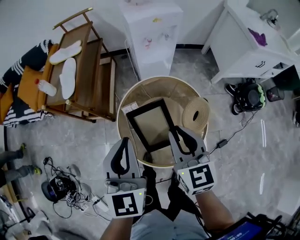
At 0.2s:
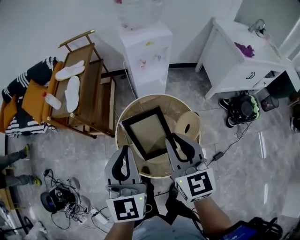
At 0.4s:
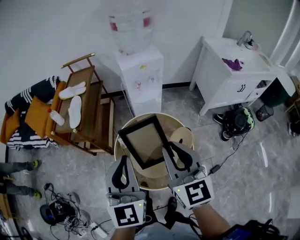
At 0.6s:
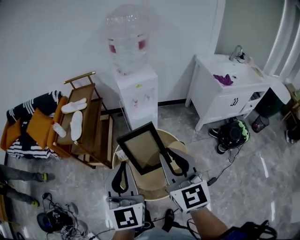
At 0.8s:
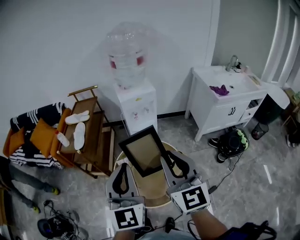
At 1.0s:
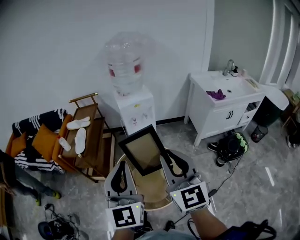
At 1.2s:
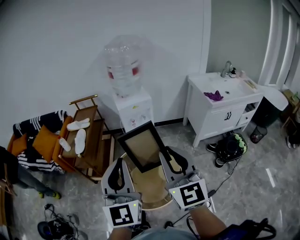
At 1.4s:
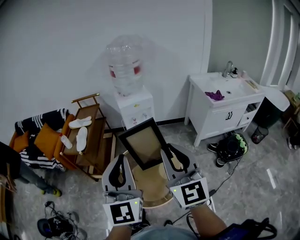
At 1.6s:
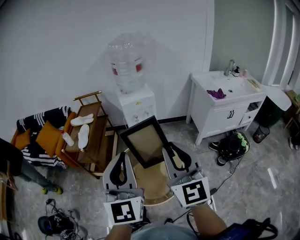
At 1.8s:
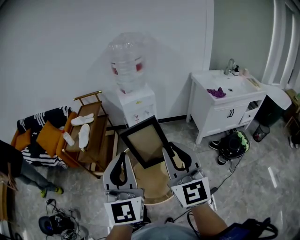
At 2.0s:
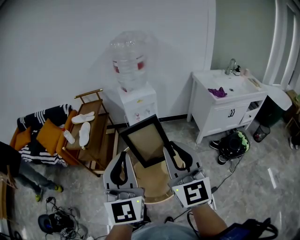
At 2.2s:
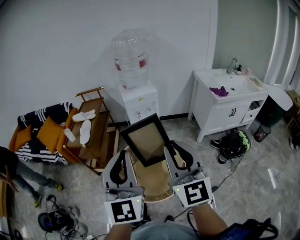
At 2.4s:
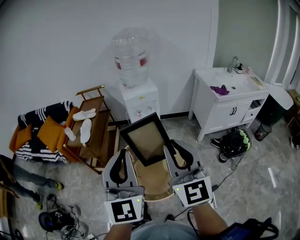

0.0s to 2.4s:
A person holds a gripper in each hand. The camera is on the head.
0.0s to 1.2s: The left gripper shifts some 30 cm upward and backward, and swivels about 30 degrees, while the right gripper shifts about 30 cm upward, and tilts its fingers roughly 30 degrees upward.
1.2s to 2.4s: The grippers stay close to where they were, moving slightly.

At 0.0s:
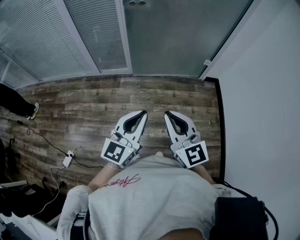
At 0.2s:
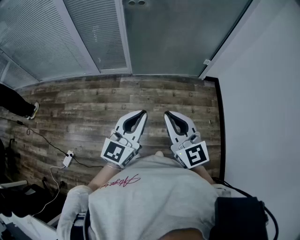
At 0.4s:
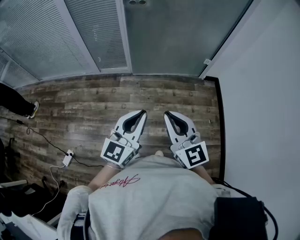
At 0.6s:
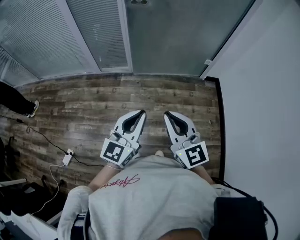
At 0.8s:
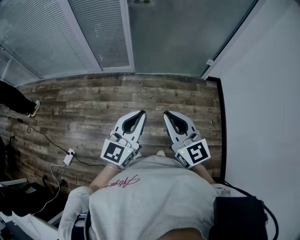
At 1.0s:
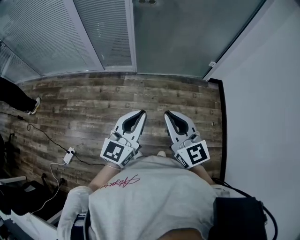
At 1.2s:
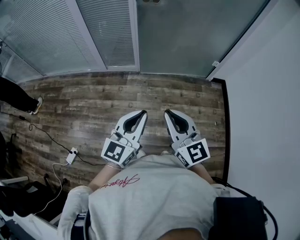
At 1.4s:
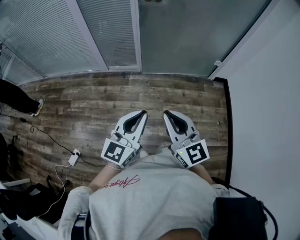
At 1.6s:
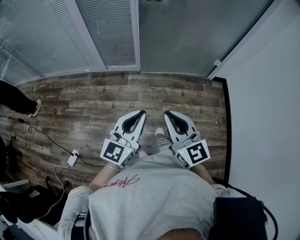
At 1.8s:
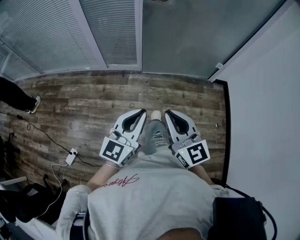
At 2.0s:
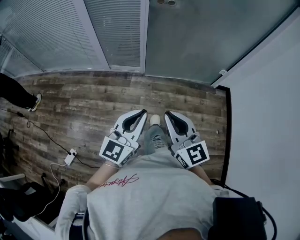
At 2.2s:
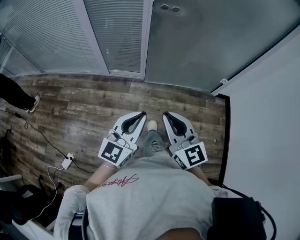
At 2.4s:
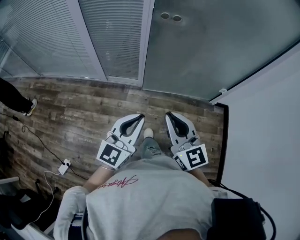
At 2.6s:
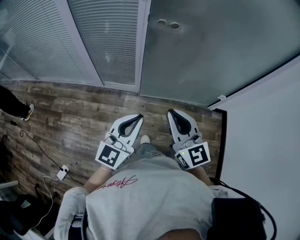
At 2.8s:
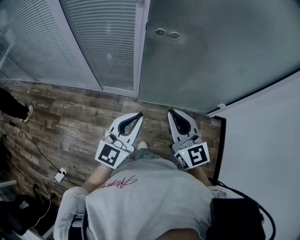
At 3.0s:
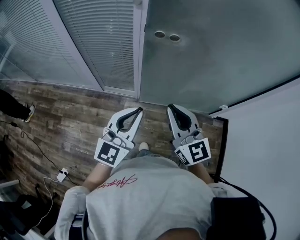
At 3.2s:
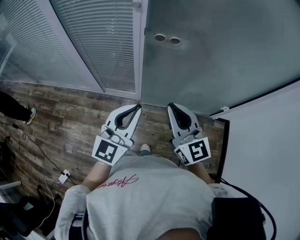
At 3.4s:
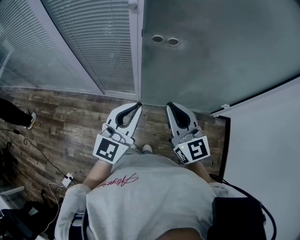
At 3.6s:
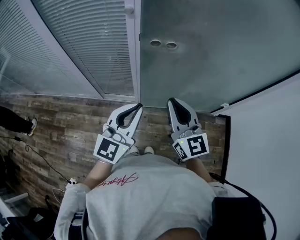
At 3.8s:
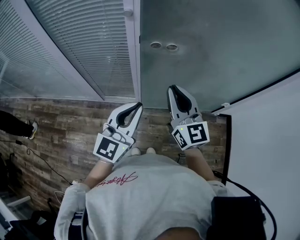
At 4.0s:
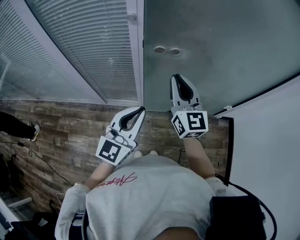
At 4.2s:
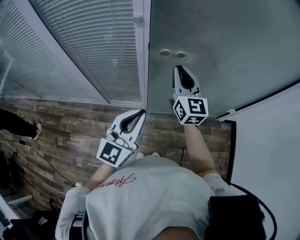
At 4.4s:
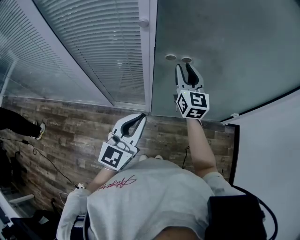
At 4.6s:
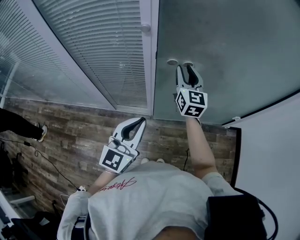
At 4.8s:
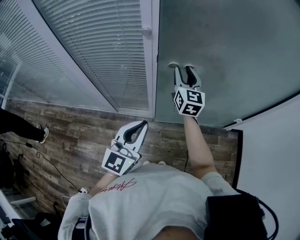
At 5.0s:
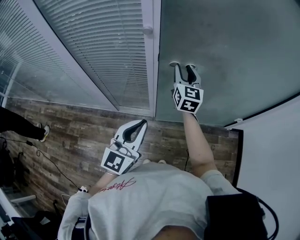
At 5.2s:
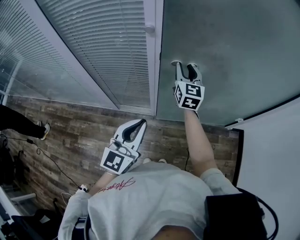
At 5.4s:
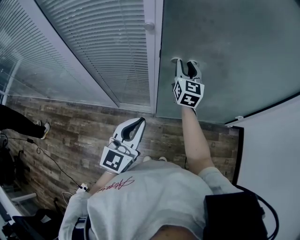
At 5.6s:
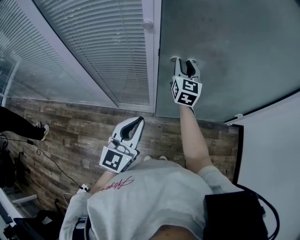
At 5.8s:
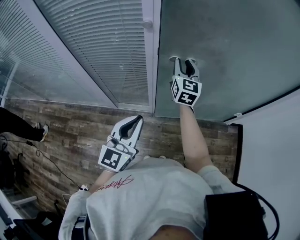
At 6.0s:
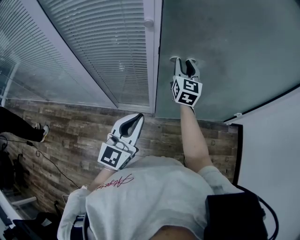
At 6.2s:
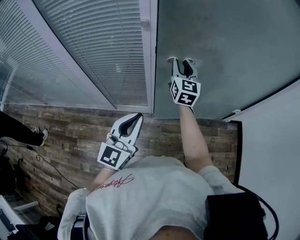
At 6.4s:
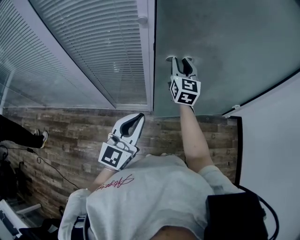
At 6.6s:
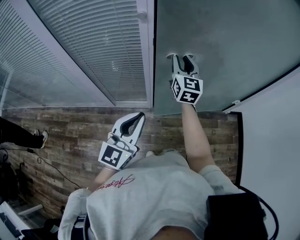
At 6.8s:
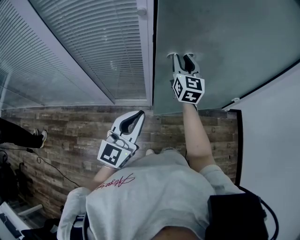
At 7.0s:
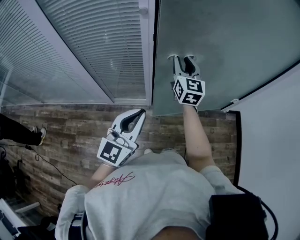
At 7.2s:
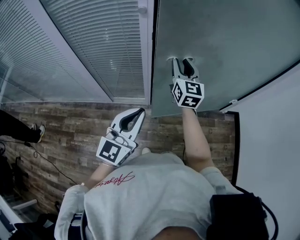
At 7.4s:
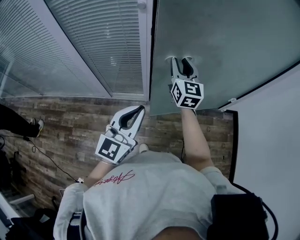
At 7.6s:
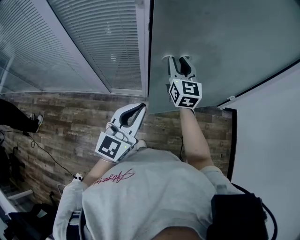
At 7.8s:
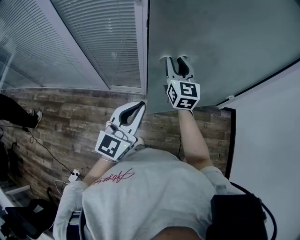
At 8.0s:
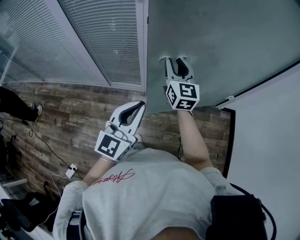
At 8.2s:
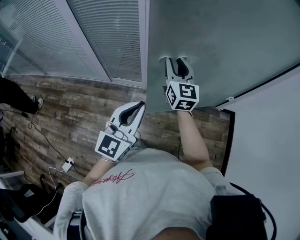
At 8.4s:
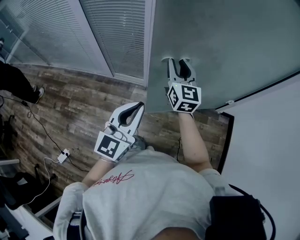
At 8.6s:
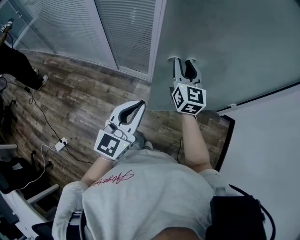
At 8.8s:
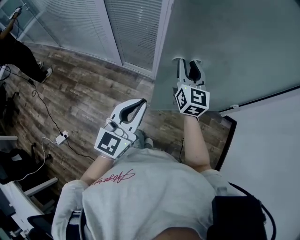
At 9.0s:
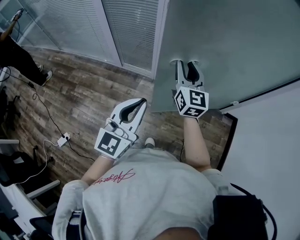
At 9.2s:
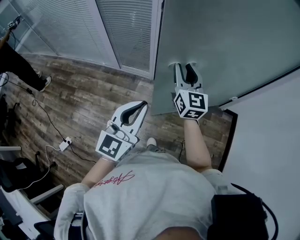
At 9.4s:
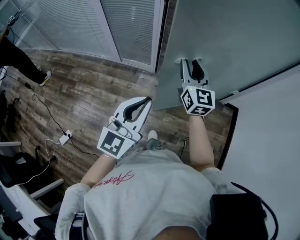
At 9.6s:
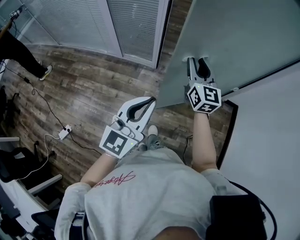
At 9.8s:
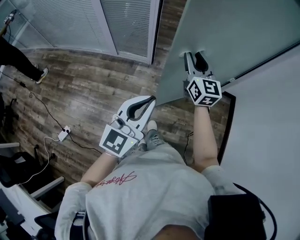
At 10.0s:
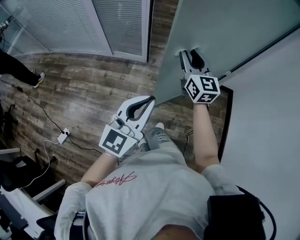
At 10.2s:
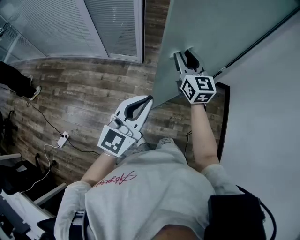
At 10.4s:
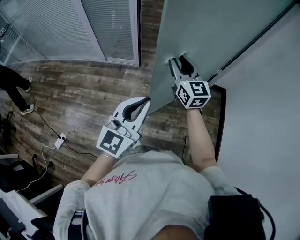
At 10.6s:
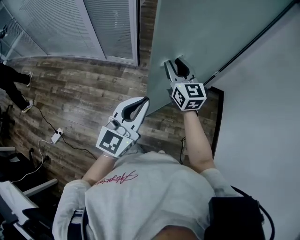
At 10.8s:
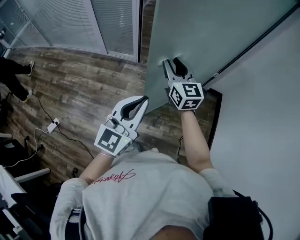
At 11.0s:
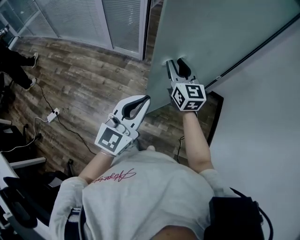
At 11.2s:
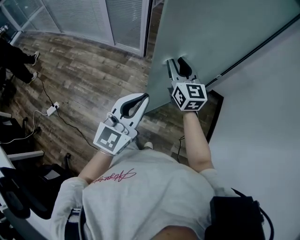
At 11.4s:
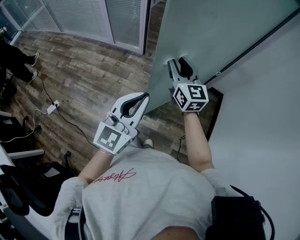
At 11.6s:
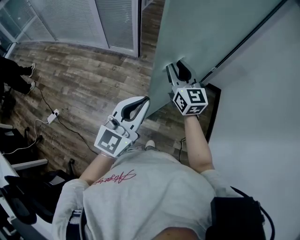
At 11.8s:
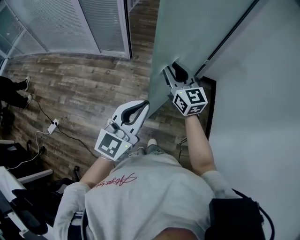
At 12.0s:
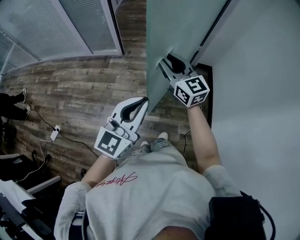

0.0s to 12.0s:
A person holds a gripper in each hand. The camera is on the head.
0.0s to 1.6s: The grippers both shift to the left by some 10 cm.
1.6s to 3.0s: The grippers both shift forward by approximately 35 cm.
3.0s to 4.4s: The left gripper is displaced forward and to the left by approximately 10 cm. Meanwhile the right gripper shifts about 25 cm forward, changes its angle by some 20 degrees, and opens up.
4.4s to 6.0s: The right gripper moves roughly 5 cm.
6.0s to 7.6s: The right gripper is displaced backward by roughly 15 cm. Meanwhile the left gripper heads to the right and backward, covering some 10 cm.
7.6s to 9.0s: The left gripper shifts about 15 cm backward and to the right, while the right gripper travels backward by approximately 15 cm.
9.0s to 10.4s: Both grippers travel together backward and to the right, approximately 20 cm.
10.4s to 12.0s: The left gripper heads to the right and backward, covering about 20 cm; the right gripper is displaced backward and to the right by roughly 20 cm.

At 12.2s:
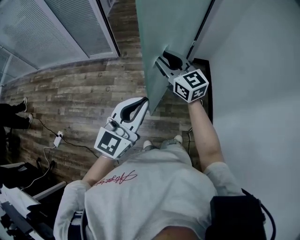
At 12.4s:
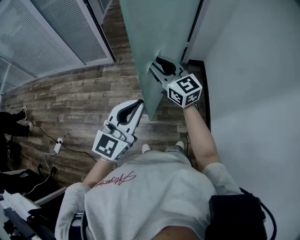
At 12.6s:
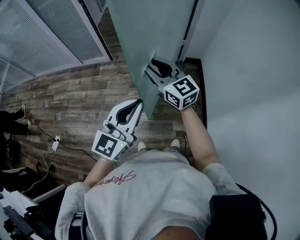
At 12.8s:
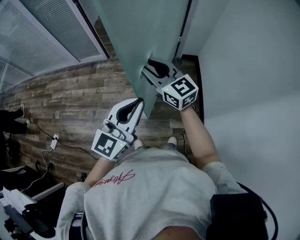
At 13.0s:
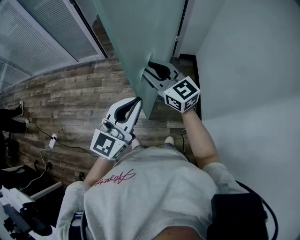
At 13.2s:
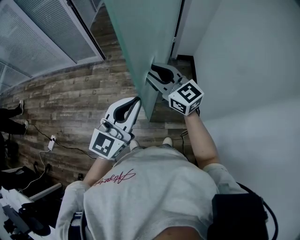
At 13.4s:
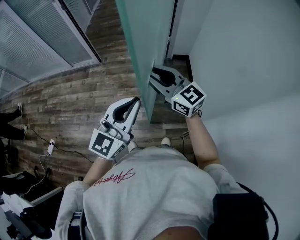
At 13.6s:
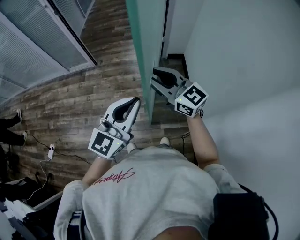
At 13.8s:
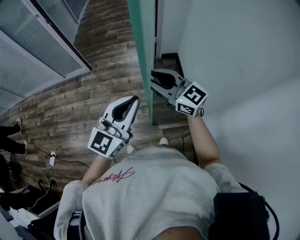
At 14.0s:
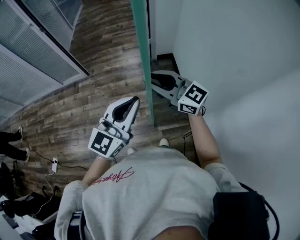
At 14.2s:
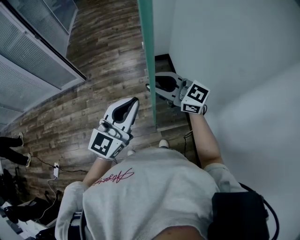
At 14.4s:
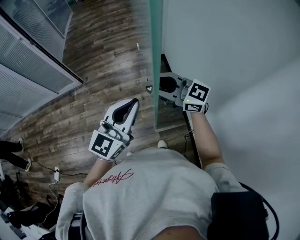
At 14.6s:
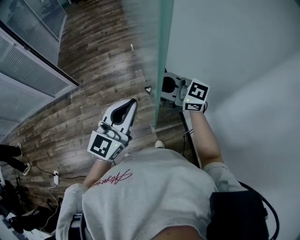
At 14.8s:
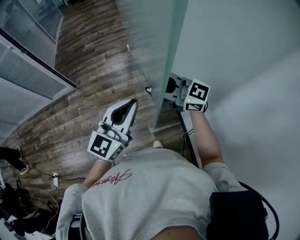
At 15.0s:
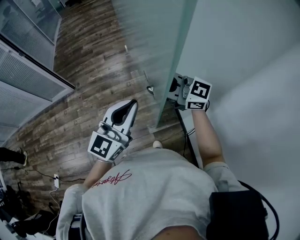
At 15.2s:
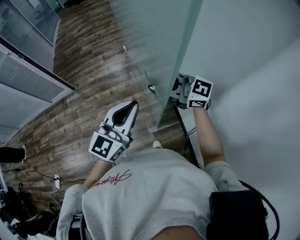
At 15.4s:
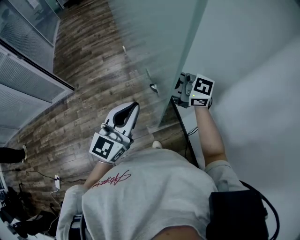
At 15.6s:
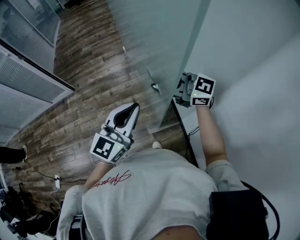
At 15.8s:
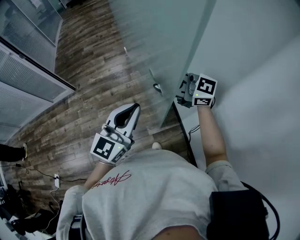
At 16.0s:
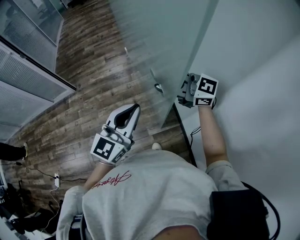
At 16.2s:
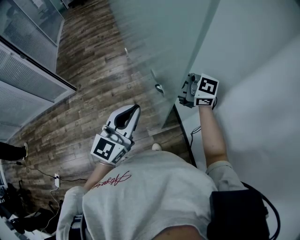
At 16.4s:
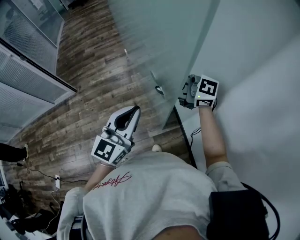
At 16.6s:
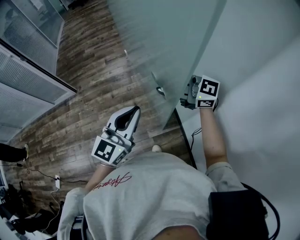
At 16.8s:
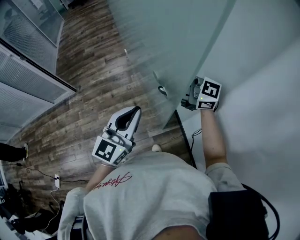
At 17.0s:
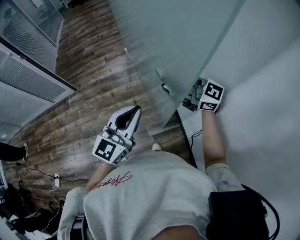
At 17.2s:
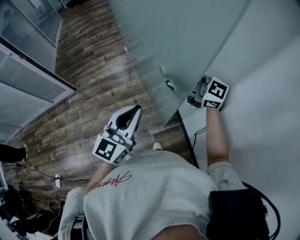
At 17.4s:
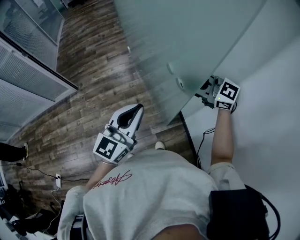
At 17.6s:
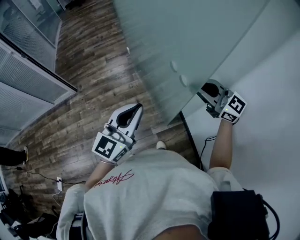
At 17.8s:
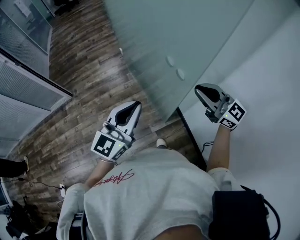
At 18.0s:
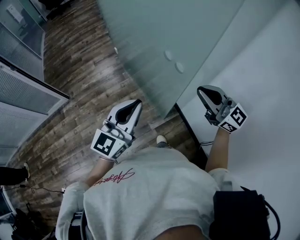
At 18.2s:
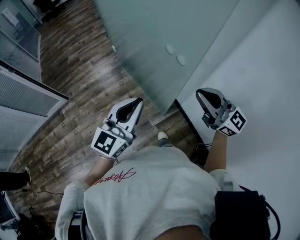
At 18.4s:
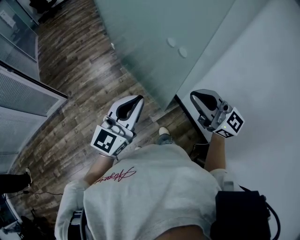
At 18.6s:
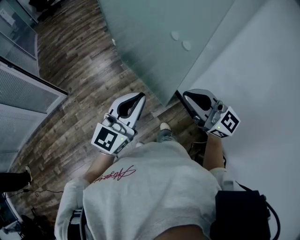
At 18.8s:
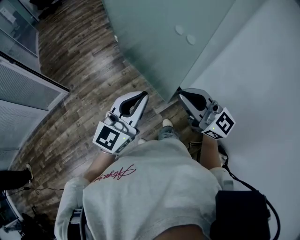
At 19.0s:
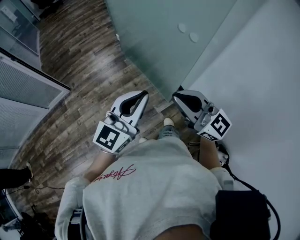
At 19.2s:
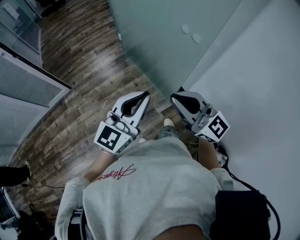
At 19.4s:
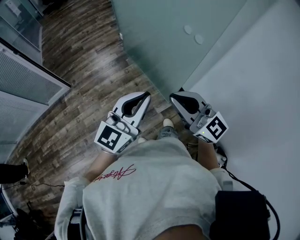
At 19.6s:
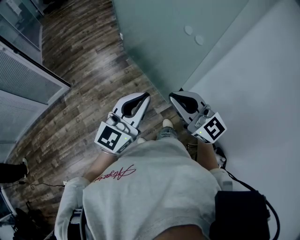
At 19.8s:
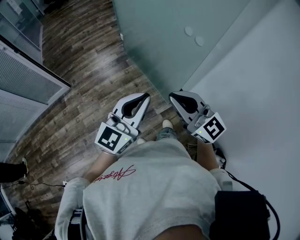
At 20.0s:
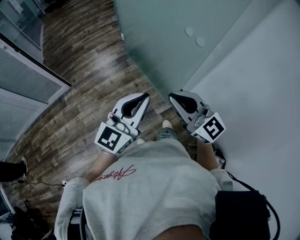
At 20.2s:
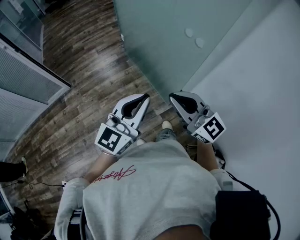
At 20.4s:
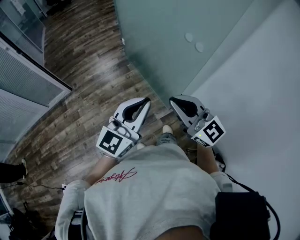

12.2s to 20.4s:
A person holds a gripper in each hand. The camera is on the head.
12.2s to 13.8s: The right gripper travels to the right and backward by about 25 cm. Meanwhile the left gripper heads to the right, covering roughly 20 cm.
13.8s to 15.4s: Both grippers move to the right, about 15 cm.
15.4s to 17.2s: The right gripper heads to the right, covering roughly 5 cm.
17.2s to 18.8s: The left gripper heads to the left and backward, covering about 15 cm; the right gripper goes some 25 cm backward and to the left, rotates about 30 degrees, and closes.
18.8s to 20.4s: The right gripper is displaced to the left by roughly 5 cm.

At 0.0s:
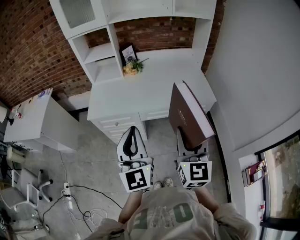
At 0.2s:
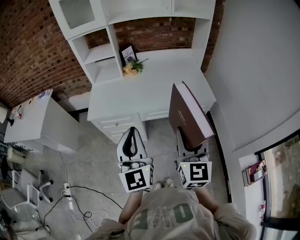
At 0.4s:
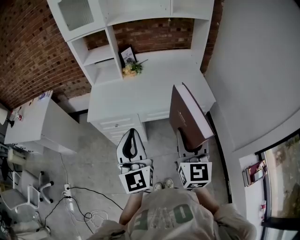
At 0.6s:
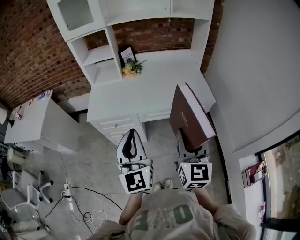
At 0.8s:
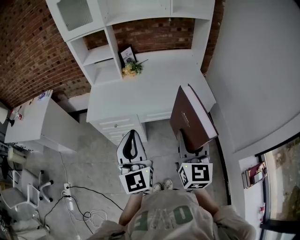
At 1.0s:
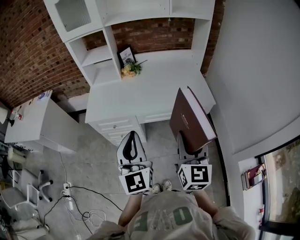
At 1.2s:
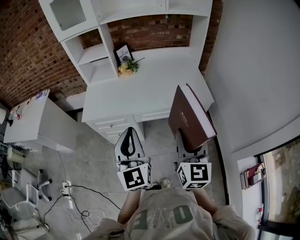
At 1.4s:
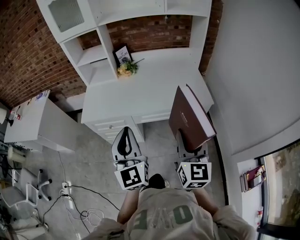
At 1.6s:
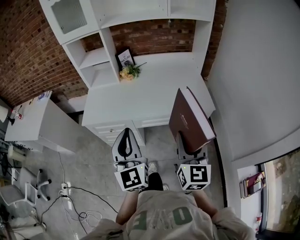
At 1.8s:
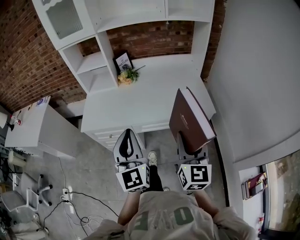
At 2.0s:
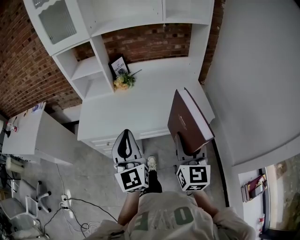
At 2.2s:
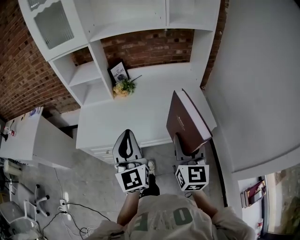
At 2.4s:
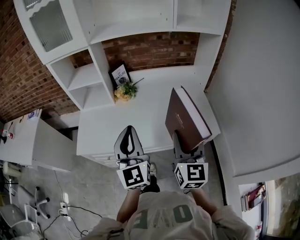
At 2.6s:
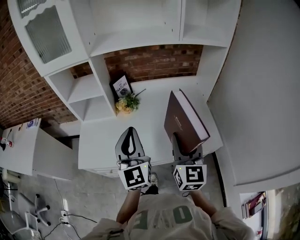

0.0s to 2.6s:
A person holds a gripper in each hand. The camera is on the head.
0.0s to 1.2s: The right gripper is displaced to the right by some 5 cm; the left gripper moves approximately 5 cm.
1.2s to 2.6s: The two grippers go some 30 cm forward.
